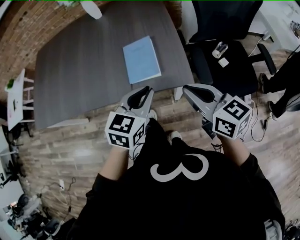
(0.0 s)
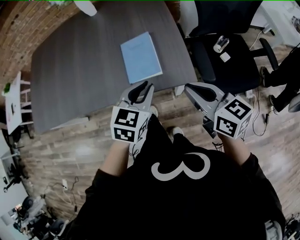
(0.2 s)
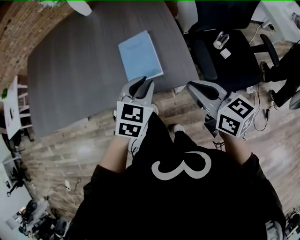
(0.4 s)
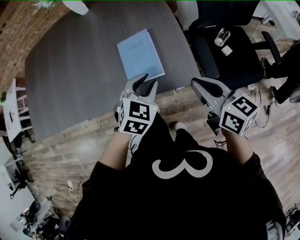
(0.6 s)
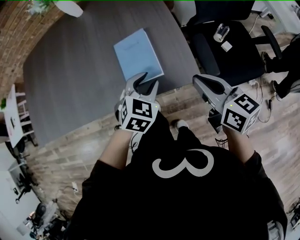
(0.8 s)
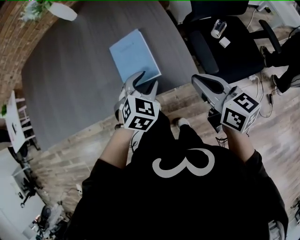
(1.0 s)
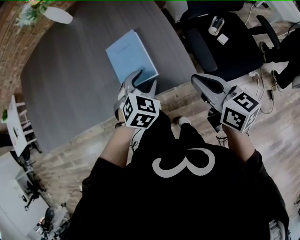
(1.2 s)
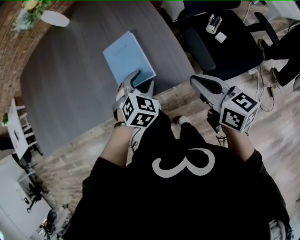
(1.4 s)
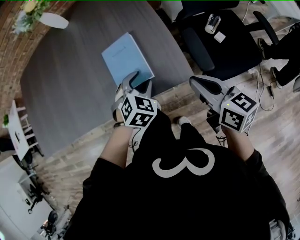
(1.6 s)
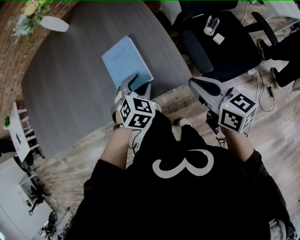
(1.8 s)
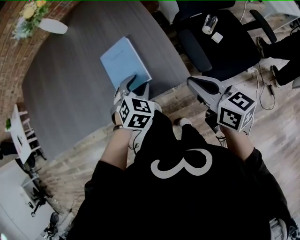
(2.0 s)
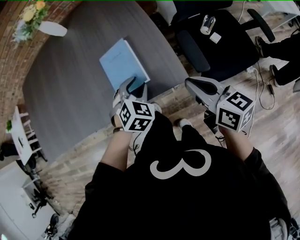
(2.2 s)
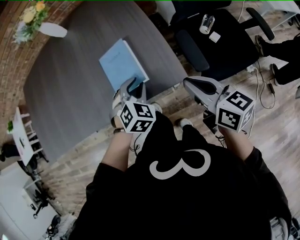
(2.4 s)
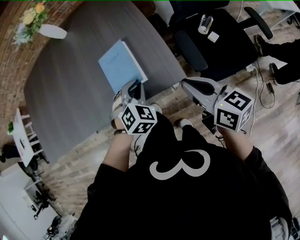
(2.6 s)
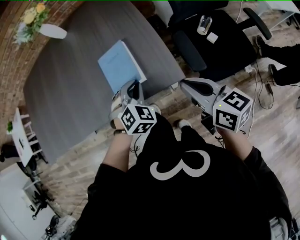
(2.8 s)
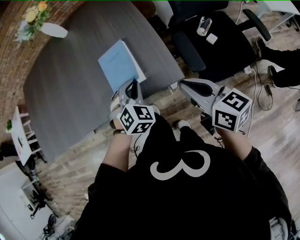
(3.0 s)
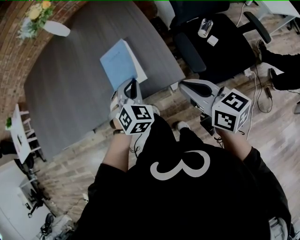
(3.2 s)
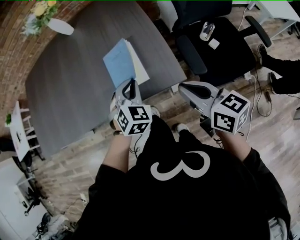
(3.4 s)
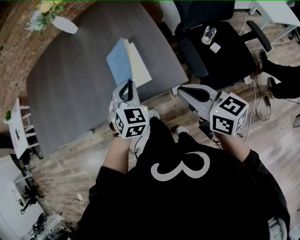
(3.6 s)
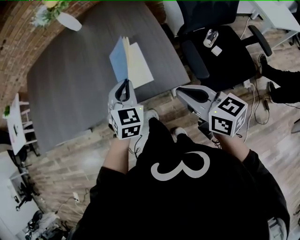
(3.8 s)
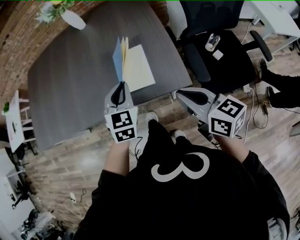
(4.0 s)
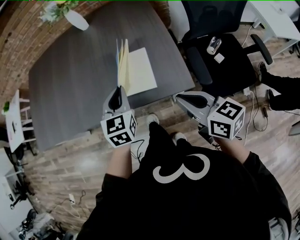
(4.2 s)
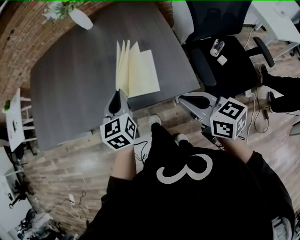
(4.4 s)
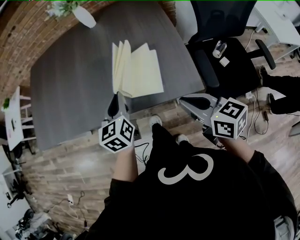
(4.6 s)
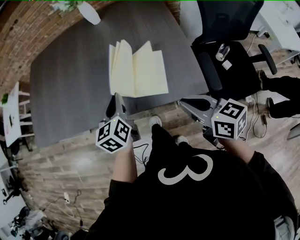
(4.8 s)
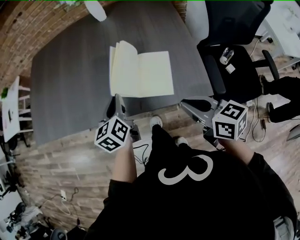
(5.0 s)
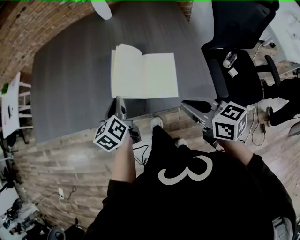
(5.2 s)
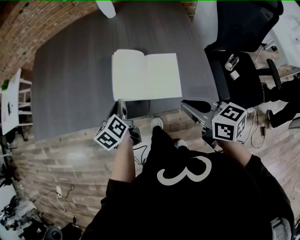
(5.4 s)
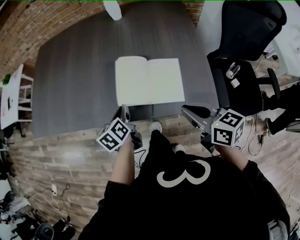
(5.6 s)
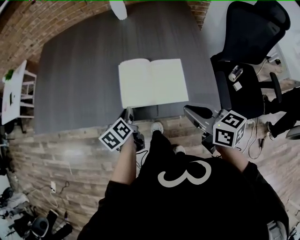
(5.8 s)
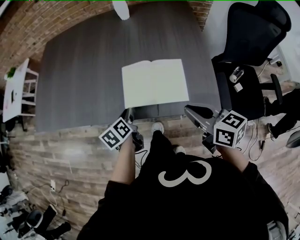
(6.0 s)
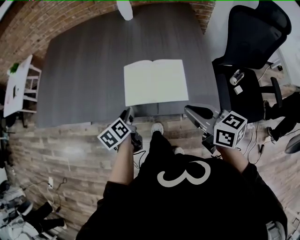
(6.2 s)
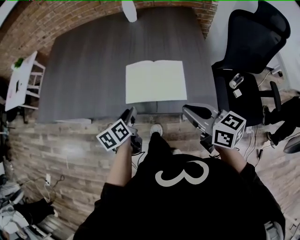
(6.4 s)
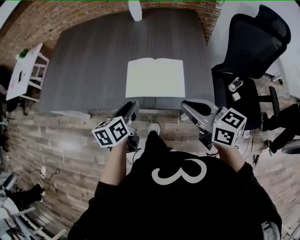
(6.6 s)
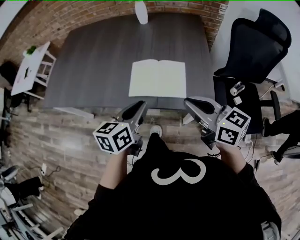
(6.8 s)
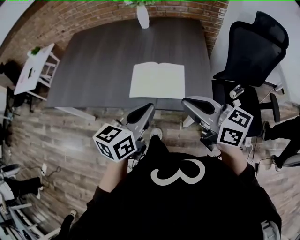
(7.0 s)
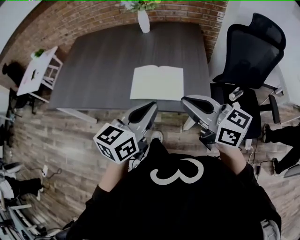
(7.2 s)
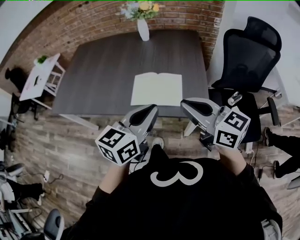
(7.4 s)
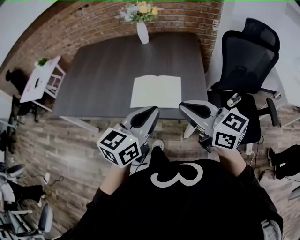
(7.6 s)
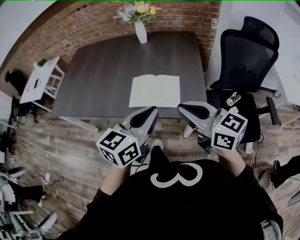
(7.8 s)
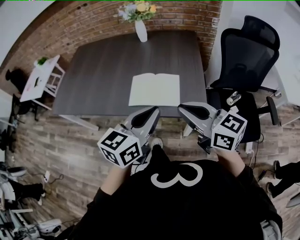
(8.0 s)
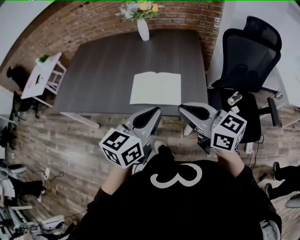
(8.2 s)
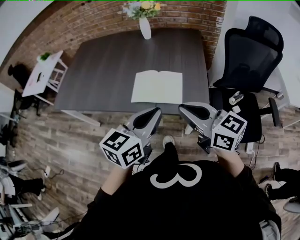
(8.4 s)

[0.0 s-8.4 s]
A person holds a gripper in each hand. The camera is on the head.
0.0 to 1.4 s: The left gripper moves downward and forward, about 15 cm, changes its angle by about 40 degrees, and opens up. The right gripper shifts approximately 5 cm downward.
1.4 to 2.8 s: The left gripper closes its fingers.
2.8 to 4.2 s: The left gripper travels to the left and upward by approximately 15 cm, and rotates around the line of its fingers by approximately 50 degrees, counterclockwise from behind. The right gripper is displaced to the left by some 5 cm.
4.2 to 5.6 s: The right gripper moves forward and to the left, about 10 cm. The left gripper moves to the left and downward, about 15 cm, and rolls counterclockwise, seen from behind, by approximately 50 degrees.
5.6 to 7.0 s: The right gripper shifts approximately 15 cm upward, and swivels roughly 20 degrees. The left gripper travels upward, backward and to the right by roughly 30 cm, swivels roughly 40 degrees, and opens, then closes again.
7.0 to 8.4 s: The left gripper ends up about 5 cm from where it was.

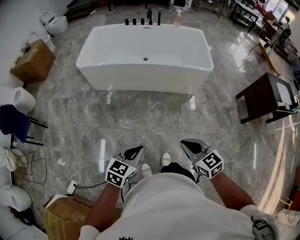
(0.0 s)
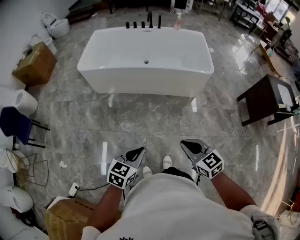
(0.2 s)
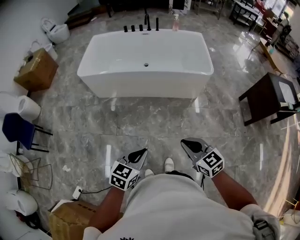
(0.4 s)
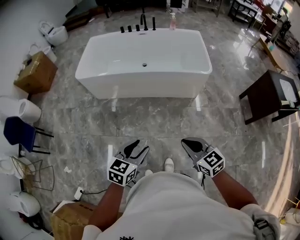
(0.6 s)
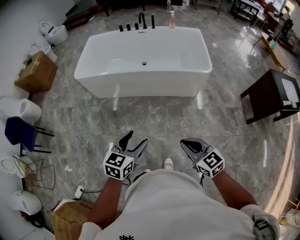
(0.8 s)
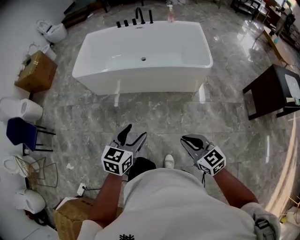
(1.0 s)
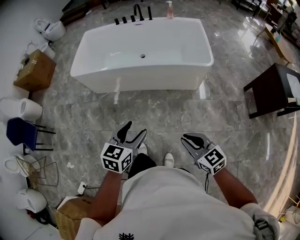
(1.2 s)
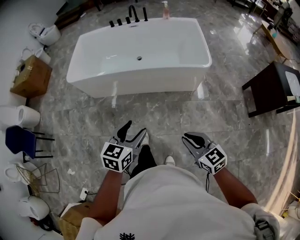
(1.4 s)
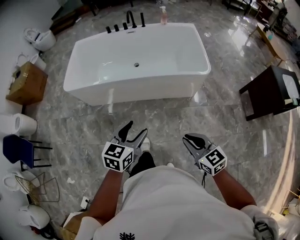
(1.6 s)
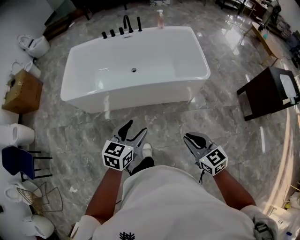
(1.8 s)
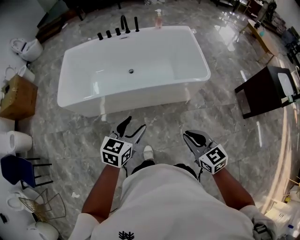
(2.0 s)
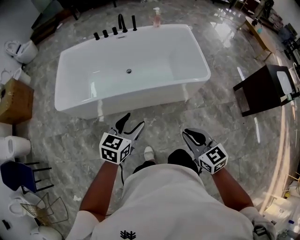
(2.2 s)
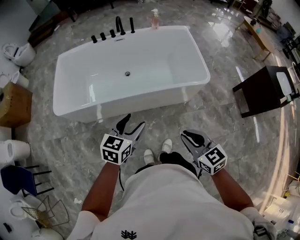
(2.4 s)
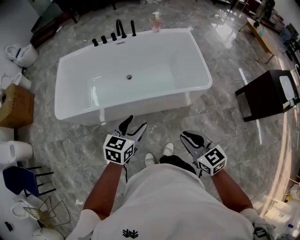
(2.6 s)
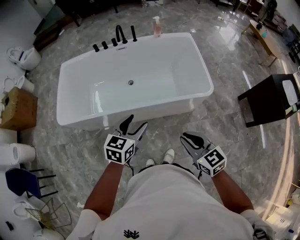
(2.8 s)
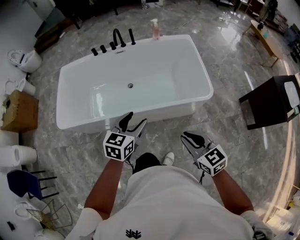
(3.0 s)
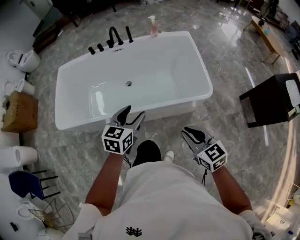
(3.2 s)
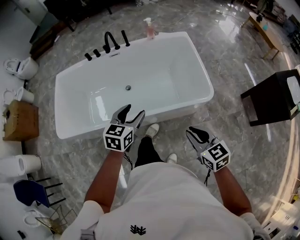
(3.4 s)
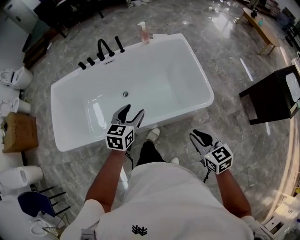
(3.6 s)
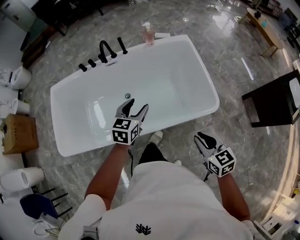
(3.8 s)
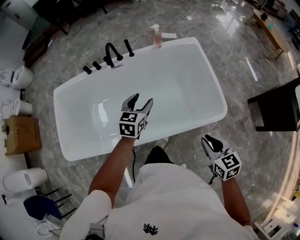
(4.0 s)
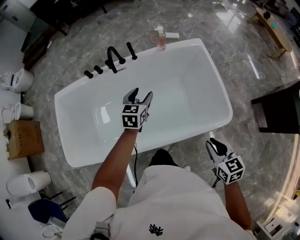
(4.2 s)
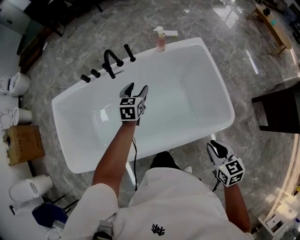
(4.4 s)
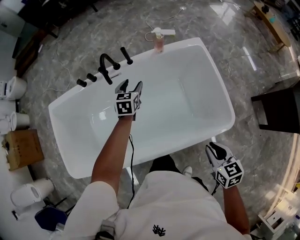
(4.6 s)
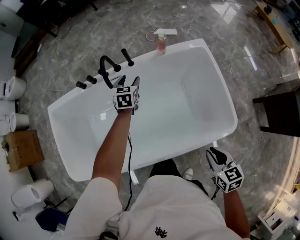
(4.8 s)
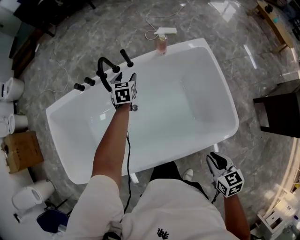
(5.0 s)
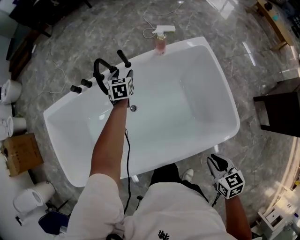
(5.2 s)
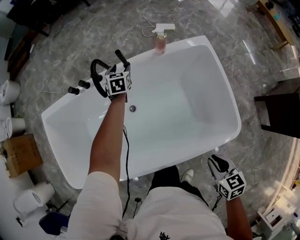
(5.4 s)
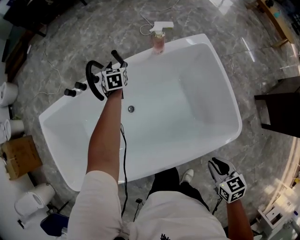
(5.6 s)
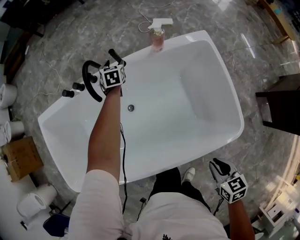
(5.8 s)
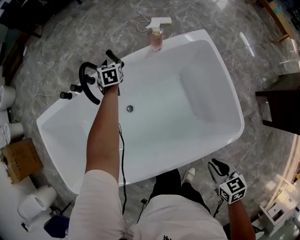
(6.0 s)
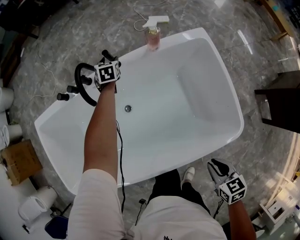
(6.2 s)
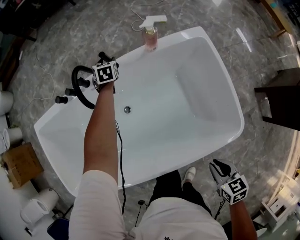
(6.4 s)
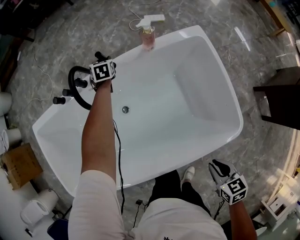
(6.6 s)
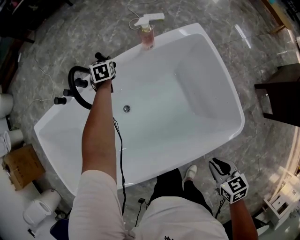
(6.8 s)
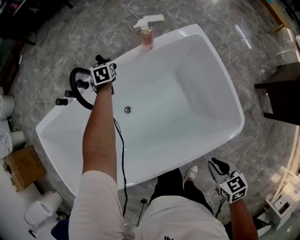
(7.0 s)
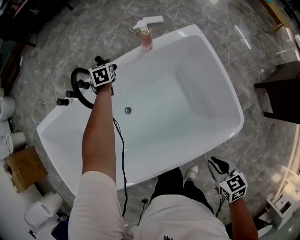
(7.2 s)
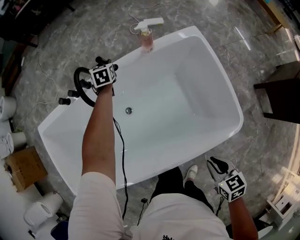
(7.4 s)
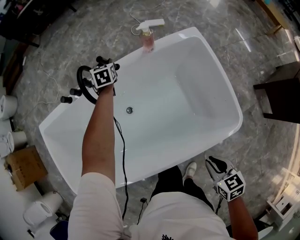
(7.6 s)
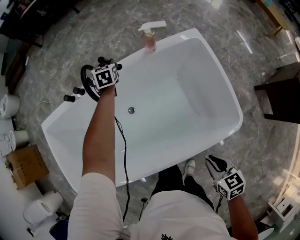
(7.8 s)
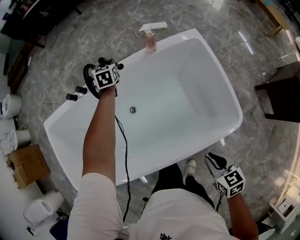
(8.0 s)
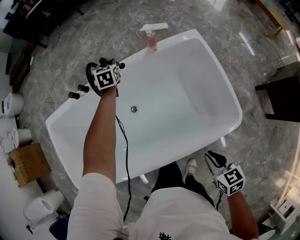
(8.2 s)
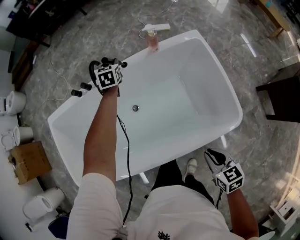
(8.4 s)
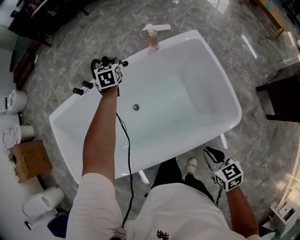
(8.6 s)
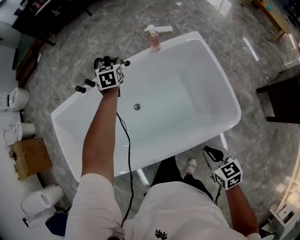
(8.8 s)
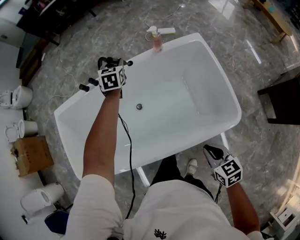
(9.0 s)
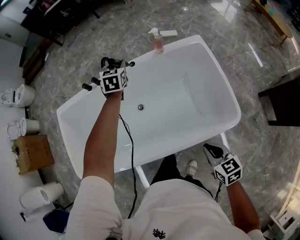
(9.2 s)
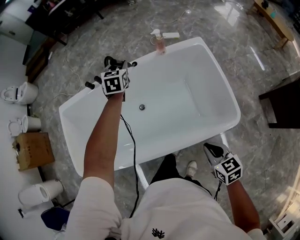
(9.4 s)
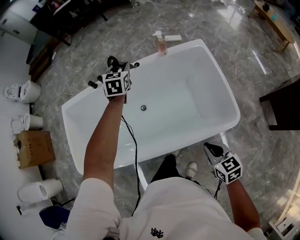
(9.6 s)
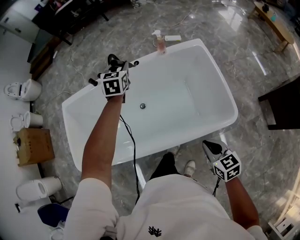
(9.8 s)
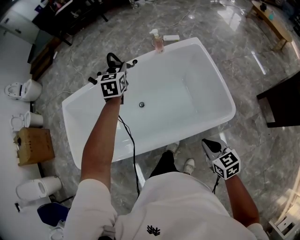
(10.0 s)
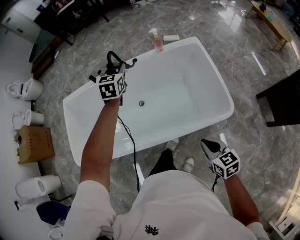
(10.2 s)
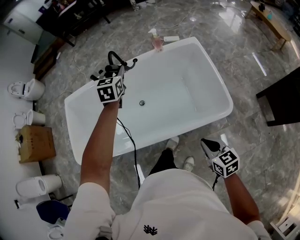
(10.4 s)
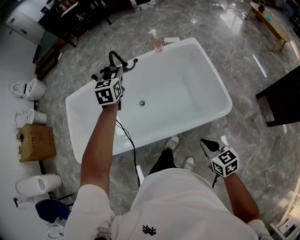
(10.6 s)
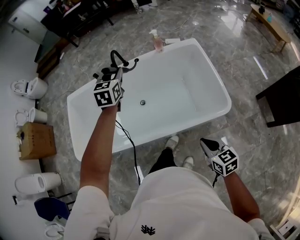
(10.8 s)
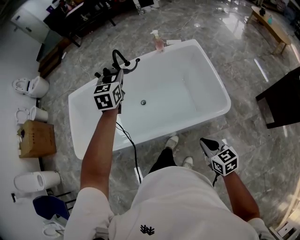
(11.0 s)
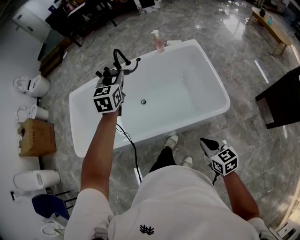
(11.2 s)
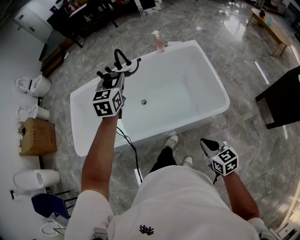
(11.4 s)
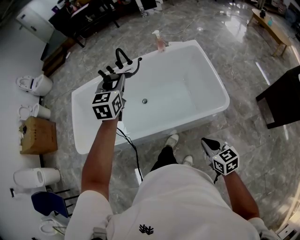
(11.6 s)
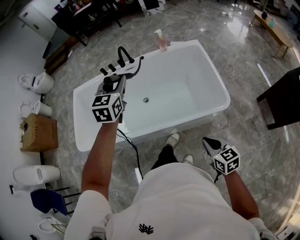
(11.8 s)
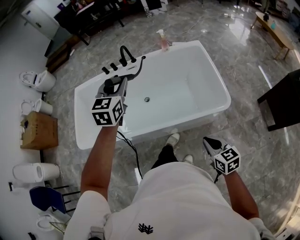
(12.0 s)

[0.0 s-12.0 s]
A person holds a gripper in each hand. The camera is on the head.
0.0 to 1.6 s: The right gripper moves forward and to the right, about 20 cm. The left gripper is displaced forward by some 30 cm, and opens.
1.6 to 3.0 s: Both grippers move forward, about 30 cm.
3.0 to 4.4 s: The left gripper goes about 50 cm forward; the right gripper moves forward, about 30 cm, and swivels roughly 30 degrees.
4.4 to 6.0 s: The right gripper is displaced downward and forward by roughly 15 cm. The left gripper is displaced forward and downward by approximately 35 cm.
6.0 to 7.6 s: The left gripper is displaced upward by about 5 cm, and closes its fingers.
7.6 to 9.0 s: The right gripper moves about 5 cm. The left gripper heads upward and backward, covering roughly 20 cm.
9.0 to 10.4 s: The right gripper travels backward by approximately 15 cm. The left gripper heads backward and upward, covering approximately 25 cm.
10.4 to 12.0 s: The right gripper is displaced backward by about 10 cm, while the left gripper is displaced backward and upward by approximately 25 cm.

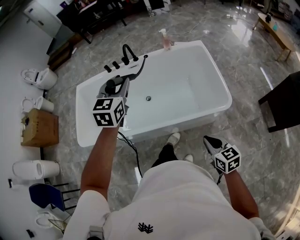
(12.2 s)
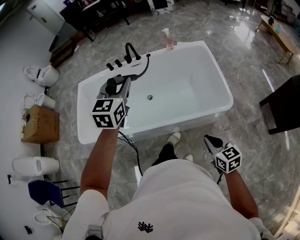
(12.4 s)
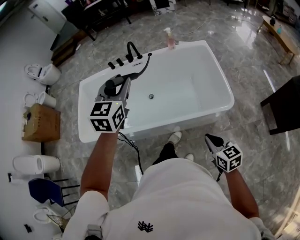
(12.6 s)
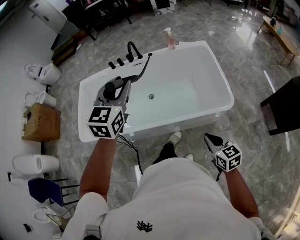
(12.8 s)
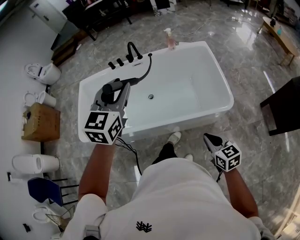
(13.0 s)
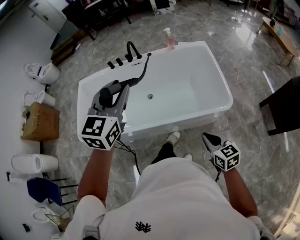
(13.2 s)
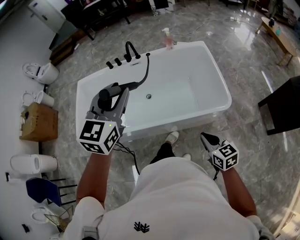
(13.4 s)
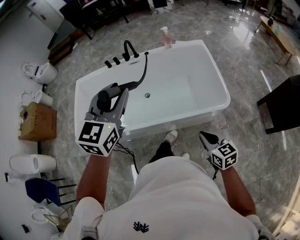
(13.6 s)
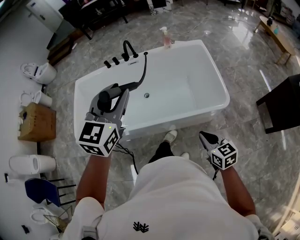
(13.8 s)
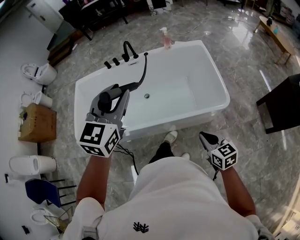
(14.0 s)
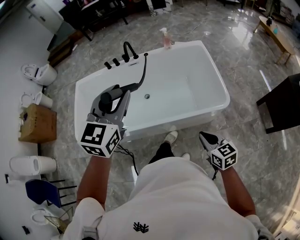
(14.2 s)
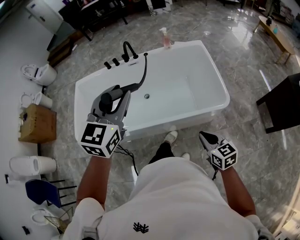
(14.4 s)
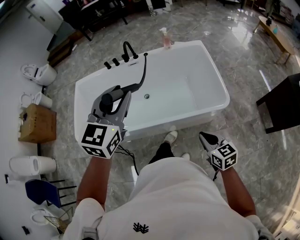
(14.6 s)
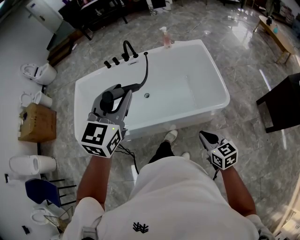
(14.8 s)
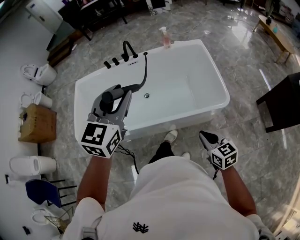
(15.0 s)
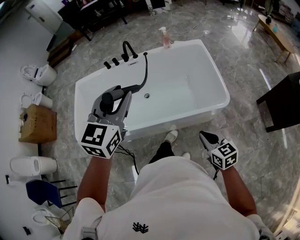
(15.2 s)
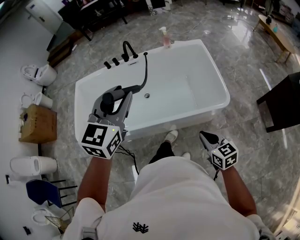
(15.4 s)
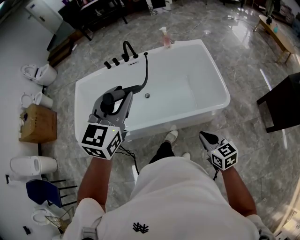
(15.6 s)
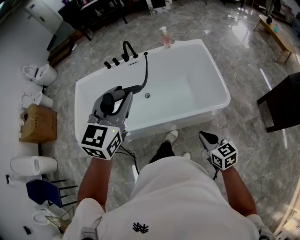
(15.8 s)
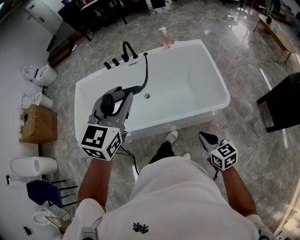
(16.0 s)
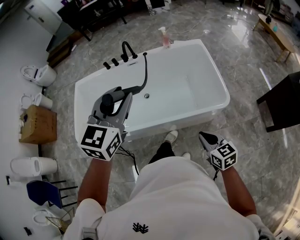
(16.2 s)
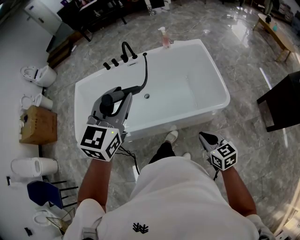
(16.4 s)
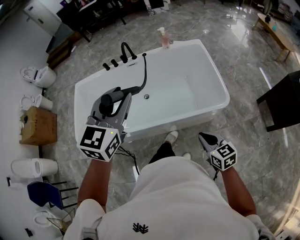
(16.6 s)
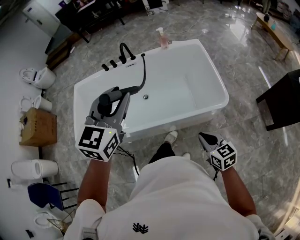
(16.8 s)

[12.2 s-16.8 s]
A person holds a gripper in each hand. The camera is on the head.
12.2 to 13.8 s: The left gripper moves backward and upward, roughly 15 cm.
13.8 to 16.8 s: Both grippers stay about where they are.
